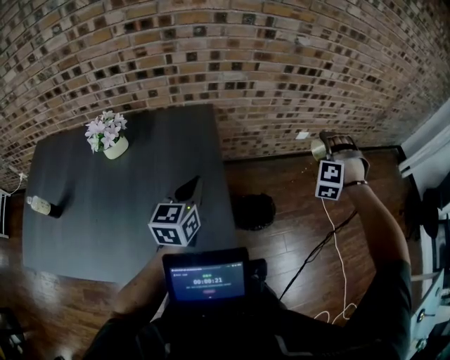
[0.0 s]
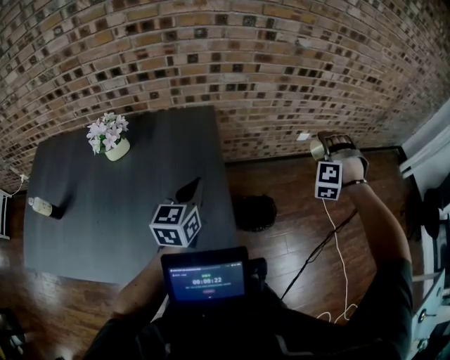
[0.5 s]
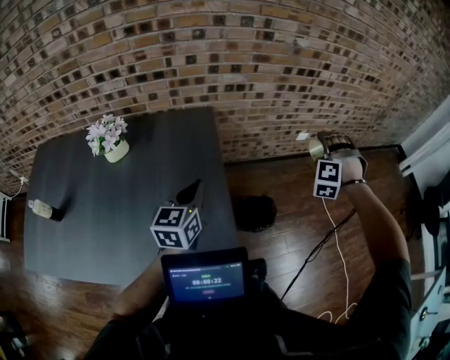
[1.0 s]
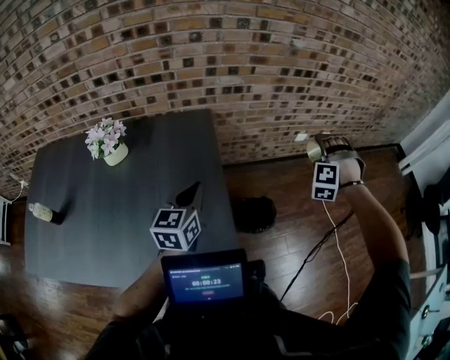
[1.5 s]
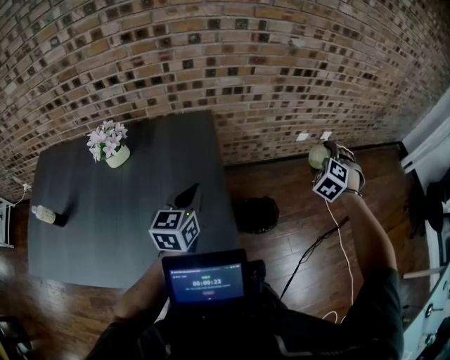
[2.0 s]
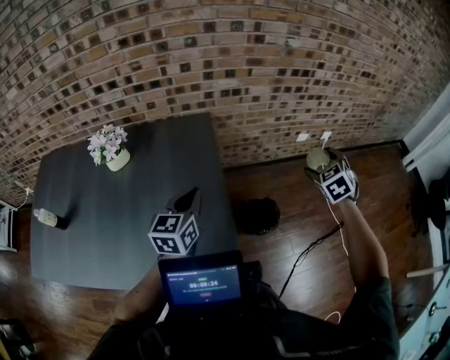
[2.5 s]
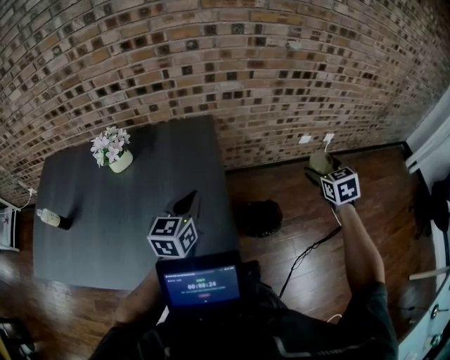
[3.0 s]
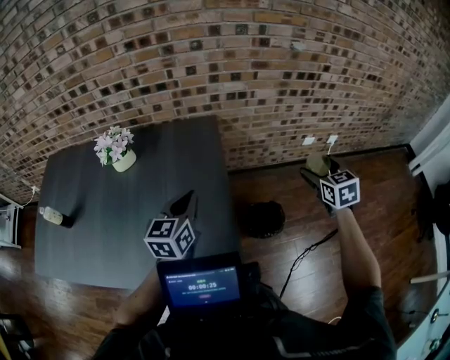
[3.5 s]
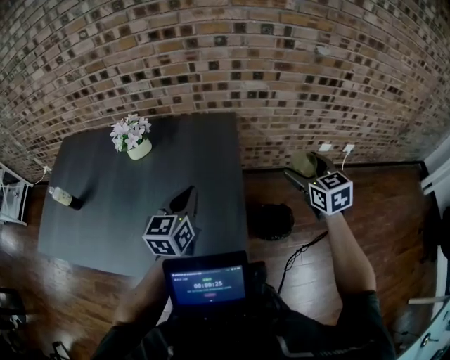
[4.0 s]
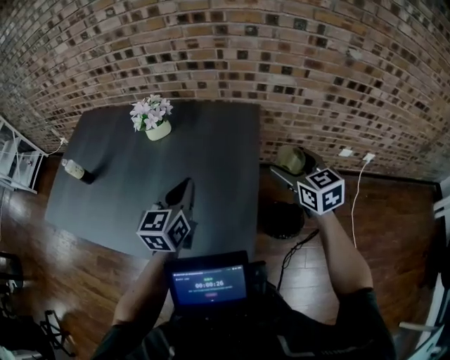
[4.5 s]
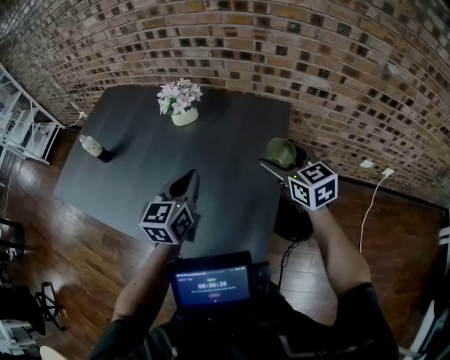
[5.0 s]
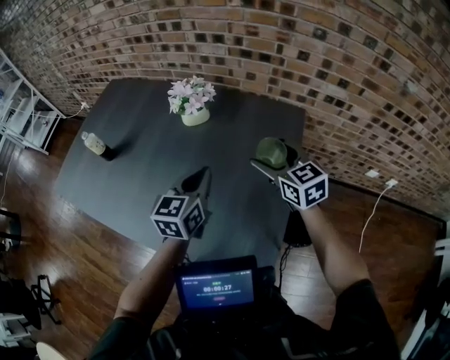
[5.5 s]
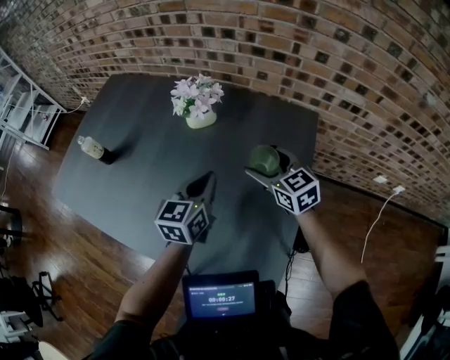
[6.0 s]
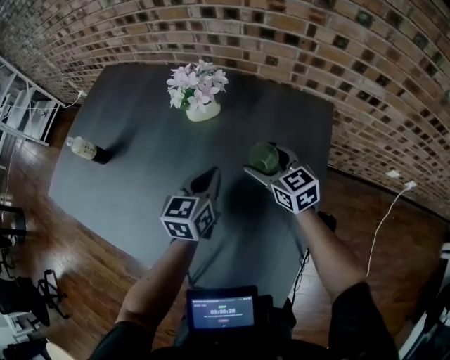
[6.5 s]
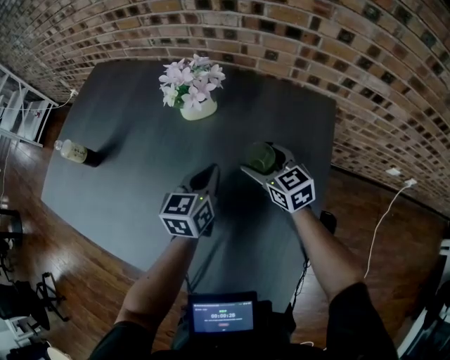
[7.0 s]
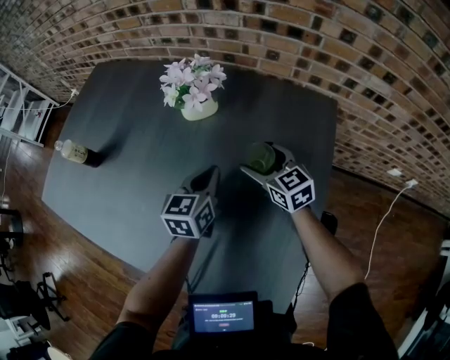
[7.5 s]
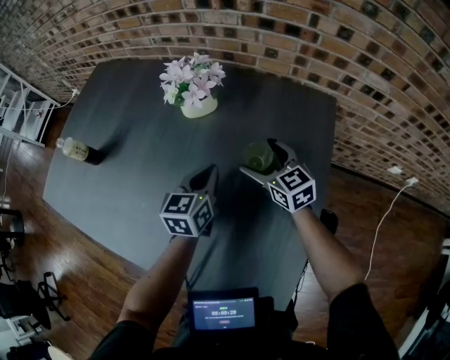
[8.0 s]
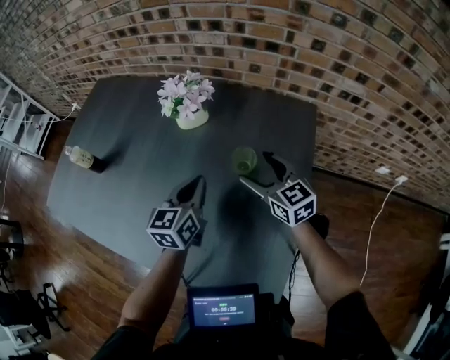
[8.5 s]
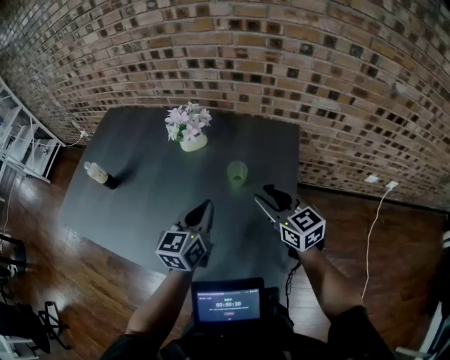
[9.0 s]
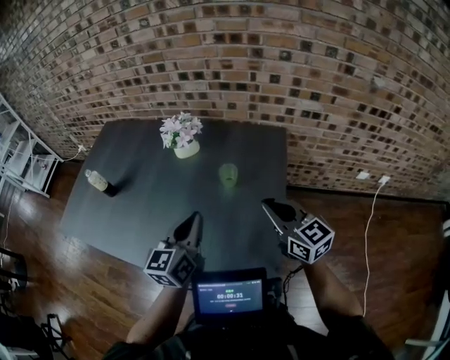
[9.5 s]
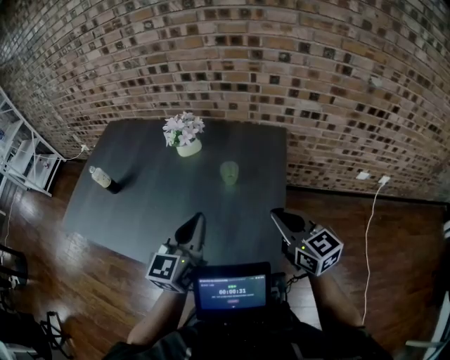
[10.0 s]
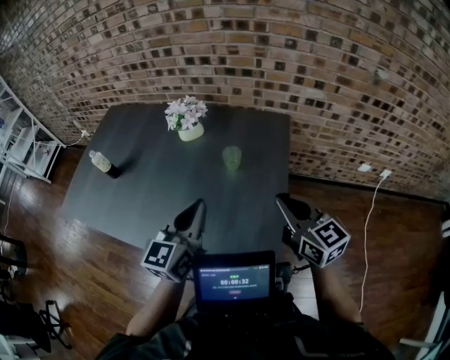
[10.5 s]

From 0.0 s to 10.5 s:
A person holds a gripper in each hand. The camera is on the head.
From 0.0 s to 2.0 s: The right gripper rotates some 30 degrees.
From 2.0 s to 4.0 s: The right gripper shifts by some 15 cm, and swivels some 60 degrees, while the left gripper changes place by roughly 5 cm.
From 4.0 s to 6.5 s: The left gripper changes place by approximately 25 cm. Meanwhile the right gripper changes place by about 40 cm, and changes its angle by approximately 40 degrees.
From 6.5 s to 8.5 s: The right gripper ends up some 5 cm from where it was.
From 8.5 s to 10.5 s: The two grippers go roughly 25 cm backward and upward. The right gripper closes up.

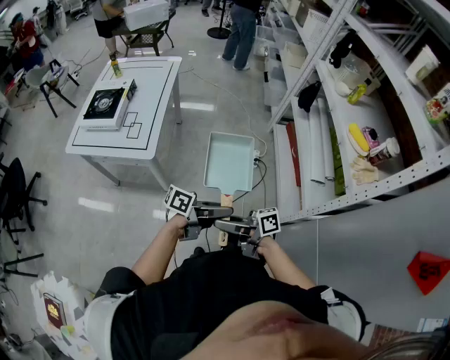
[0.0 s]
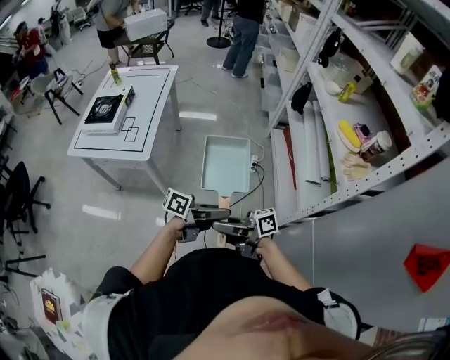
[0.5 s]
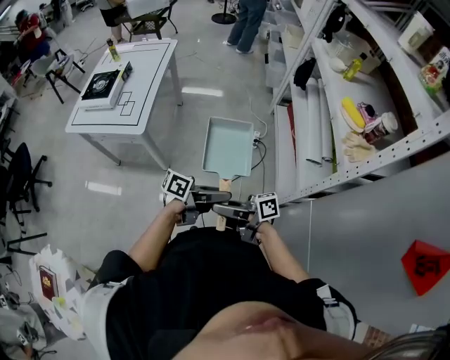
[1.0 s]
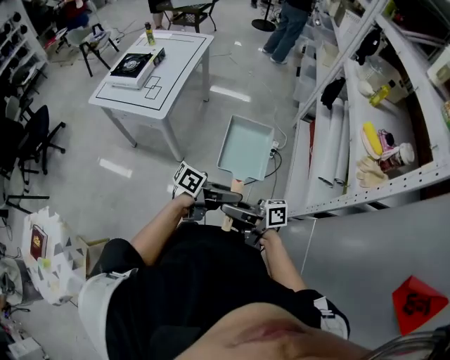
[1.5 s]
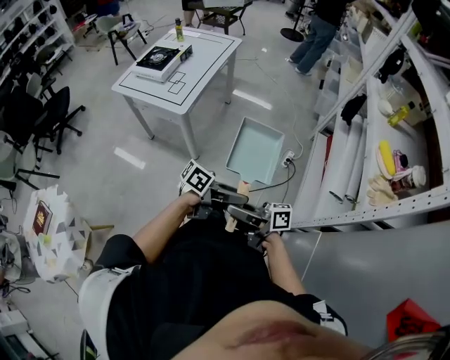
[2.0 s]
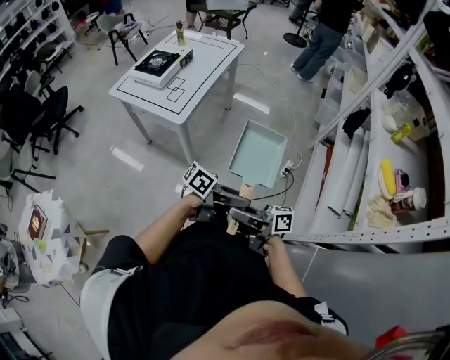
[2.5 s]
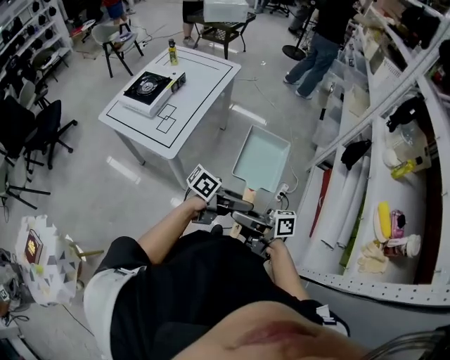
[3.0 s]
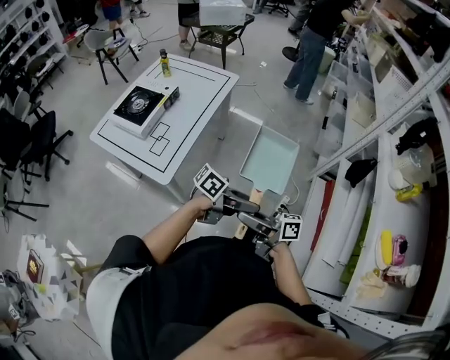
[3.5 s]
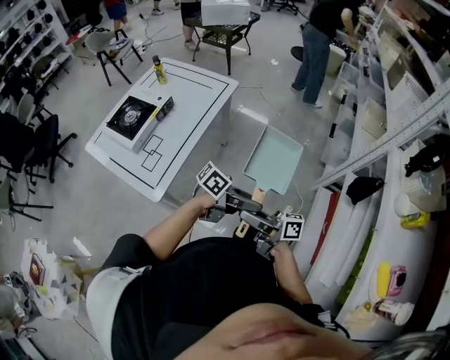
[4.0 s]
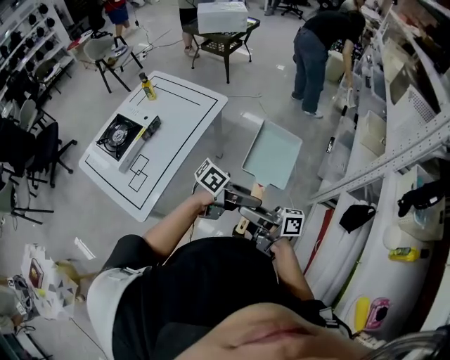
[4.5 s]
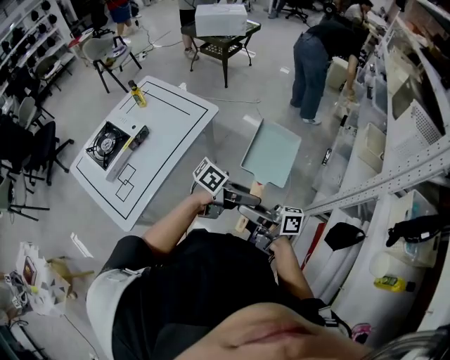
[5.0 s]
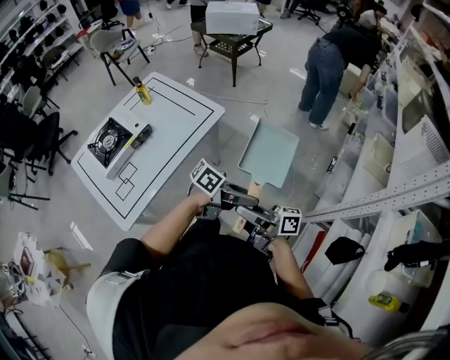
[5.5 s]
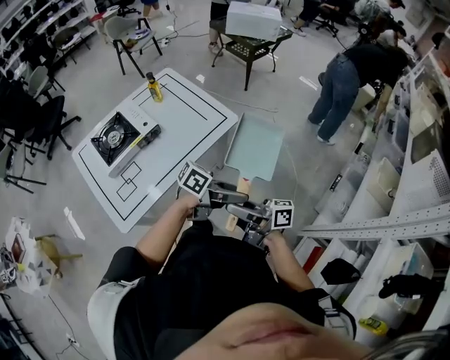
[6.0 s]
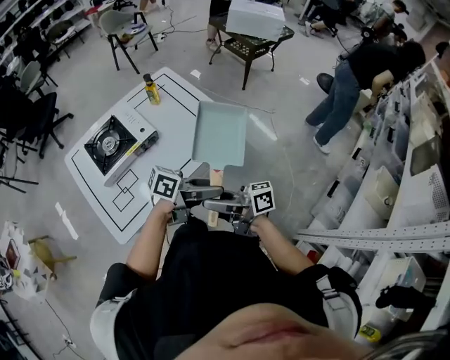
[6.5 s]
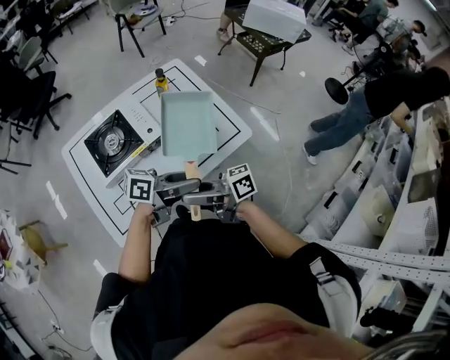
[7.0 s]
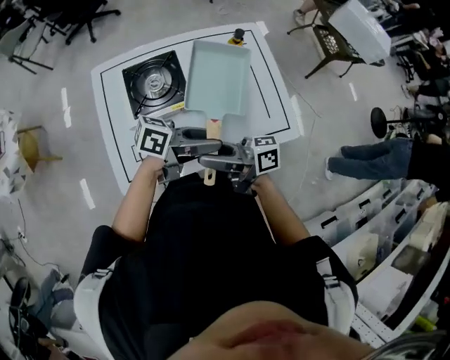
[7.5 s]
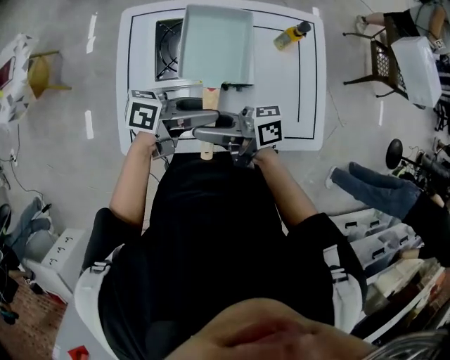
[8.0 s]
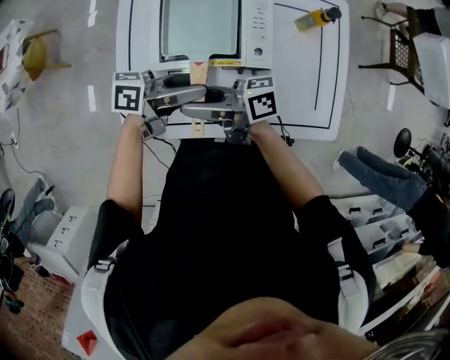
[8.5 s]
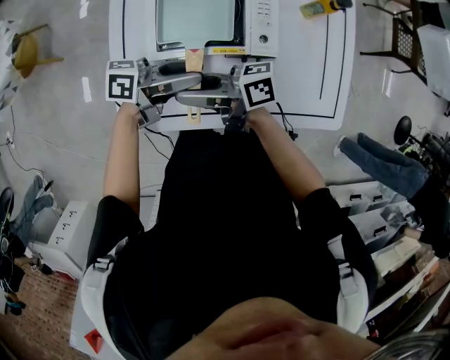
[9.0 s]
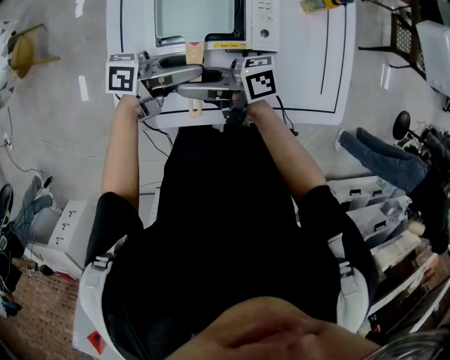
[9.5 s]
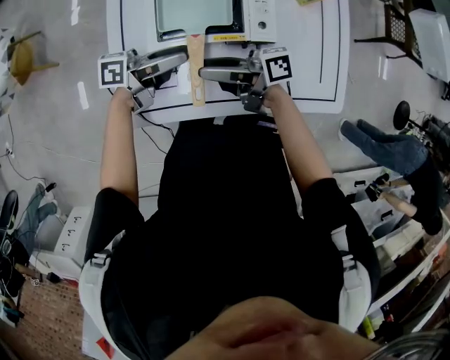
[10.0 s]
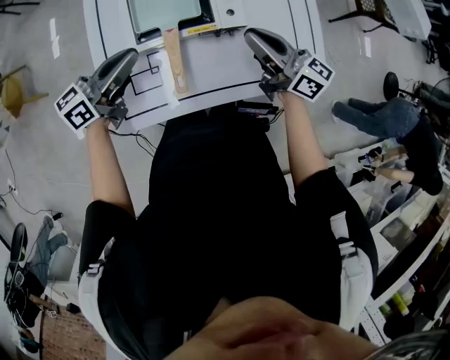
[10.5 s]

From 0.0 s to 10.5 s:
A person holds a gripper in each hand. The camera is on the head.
From 0.0 s to 2.0 s: The left gripper changes place by roughly 10 cm. Meanwhile the right gripper moves roughly 10 cm.
From 2.0 s to 4.0 s: Both grippers are carried roughly 50 cm.
From 4.0 s to 6.5 s: The left gripper changes place by roughly 40 cm, and changes its angle by approximately 40 degrees. The right gripper ends up some 35 cm from where it was, and swivels approximately 40 degrees.
From 6.5 s to 8.5 s: The left gripper moves roughly 40 cm, and changes its angle by roughly 50 degrees; the right gripper changes place by some 40 cm, and rotates about 50 degrees.
From 8.5 s to 10.5 s: The right gripper changes place by about 20 cm, changes its angle by approximately 60 degrees, and closes; the left gripper ends up approximately 10 cm from where it was, changes its angle by roughly 30 degrees, and closes up.

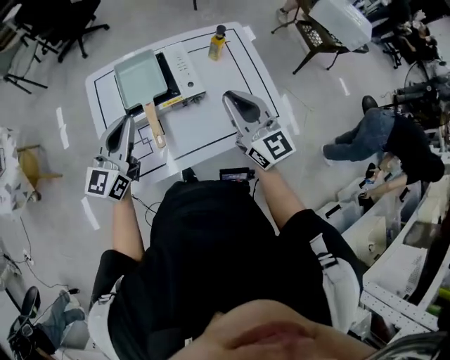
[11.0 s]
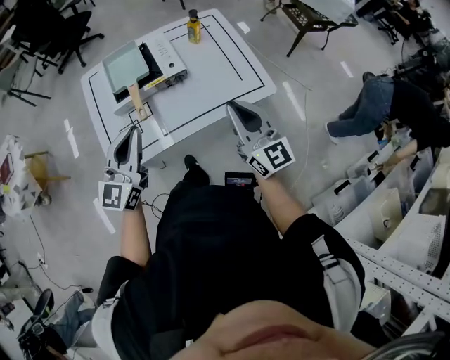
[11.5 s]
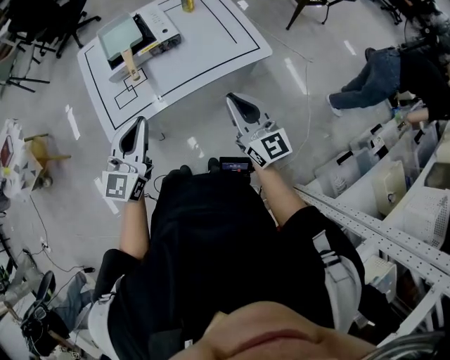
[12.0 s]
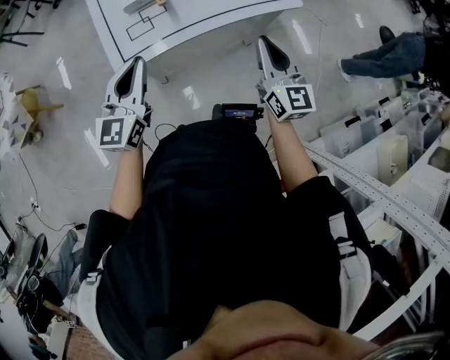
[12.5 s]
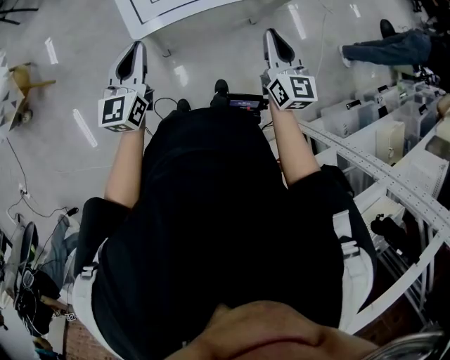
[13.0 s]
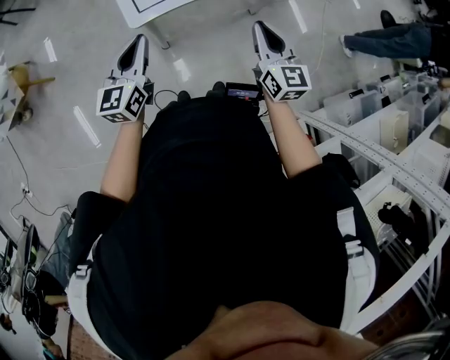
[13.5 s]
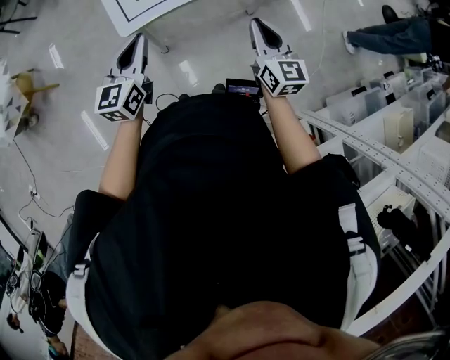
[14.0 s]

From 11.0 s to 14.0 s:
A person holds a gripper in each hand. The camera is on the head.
From 11.0 s to 12.5 s: Both grippers travel together backward, about 25 cm. The right gripper rotates about 20 degrees.
From 12.5 s to 14.0 s: The left gripper travels downward and to the left by some 10 cm; the right gripper shifts approximately 10 cm downward, backward and to the left.

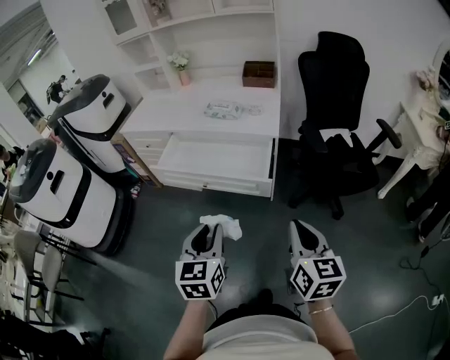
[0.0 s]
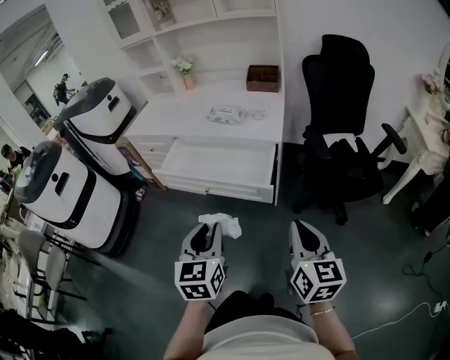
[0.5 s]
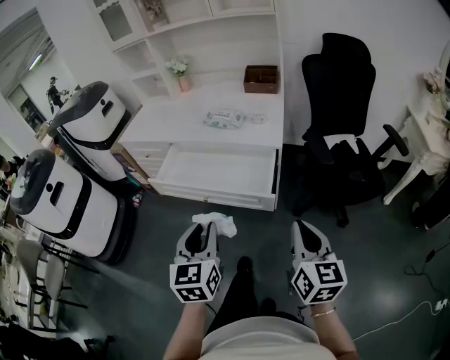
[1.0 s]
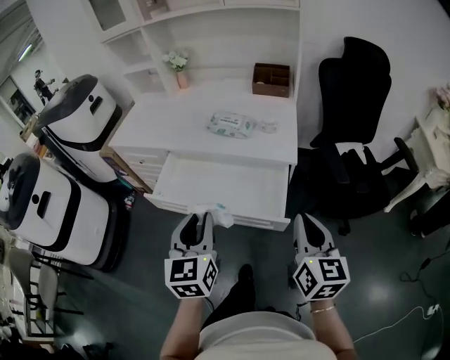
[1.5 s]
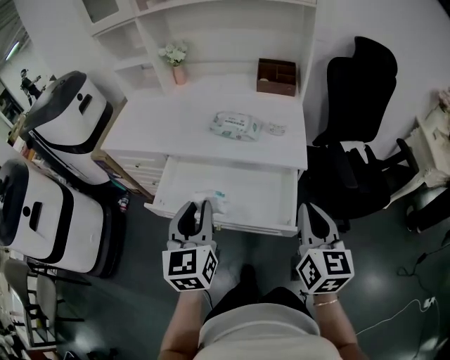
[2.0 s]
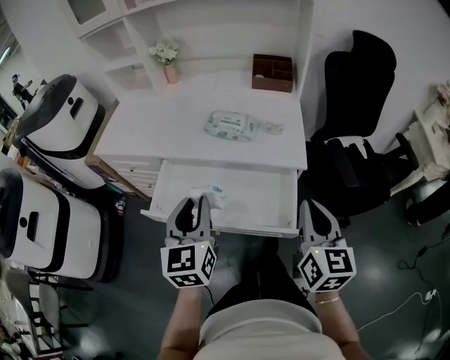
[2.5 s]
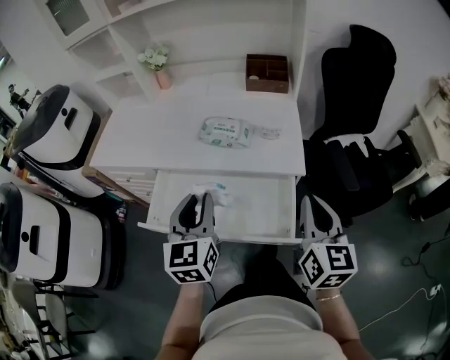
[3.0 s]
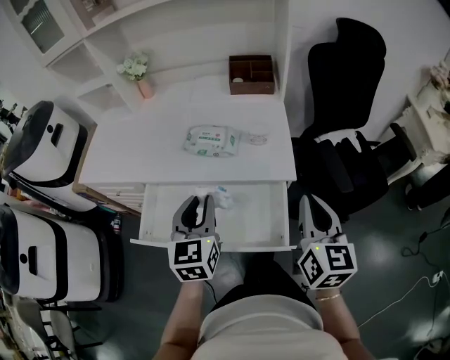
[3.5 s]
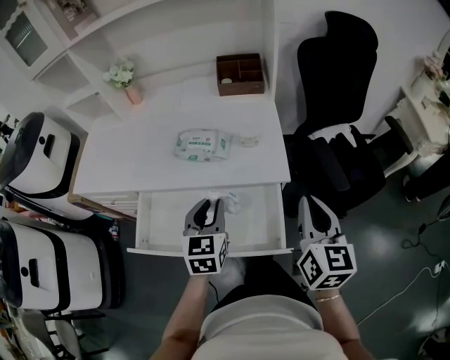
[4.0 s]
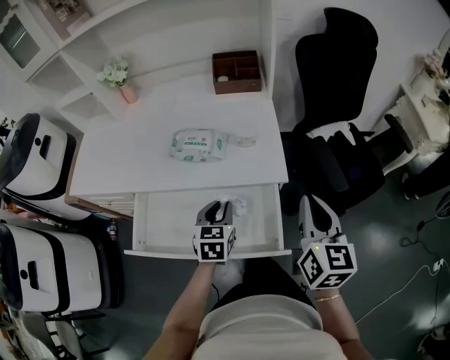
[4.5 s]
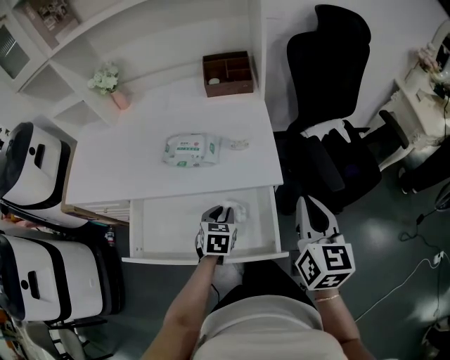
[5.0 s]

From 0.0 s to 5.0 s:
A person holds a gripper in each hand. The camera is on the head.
From 0.0 s to 2.5 s: The two grippers go some 30 cm forward.
From 2.5 s to 5.0 s: The left gripper moves downward, forward and to the right, roughly 30 cm, and angles its fingers downward, by roughly 40 degrees, while the right gripper goes approximately 15 cm forward and to the right.
